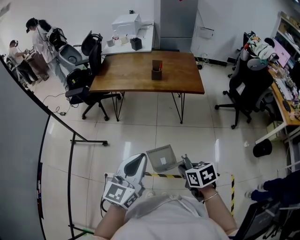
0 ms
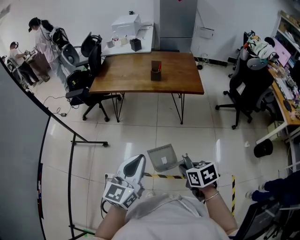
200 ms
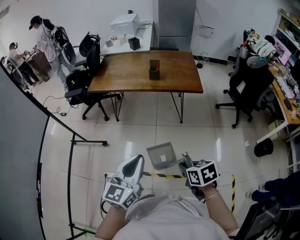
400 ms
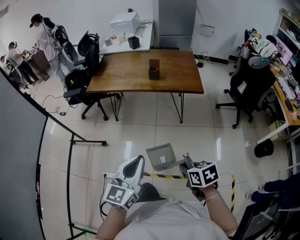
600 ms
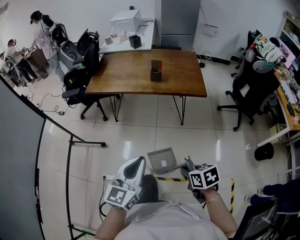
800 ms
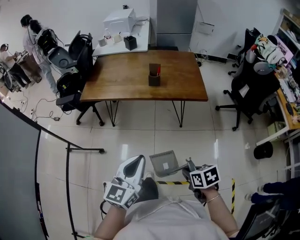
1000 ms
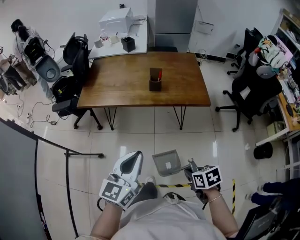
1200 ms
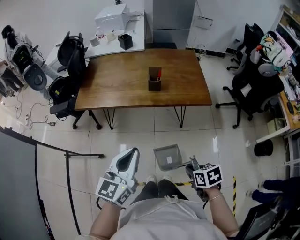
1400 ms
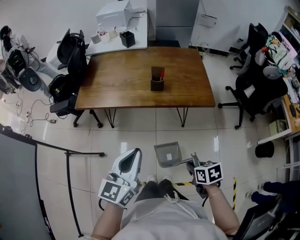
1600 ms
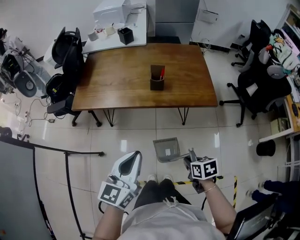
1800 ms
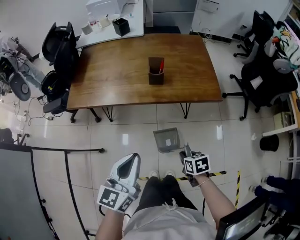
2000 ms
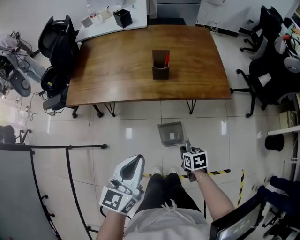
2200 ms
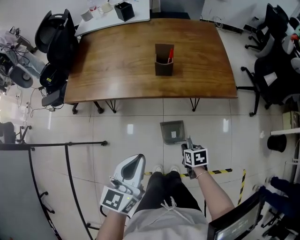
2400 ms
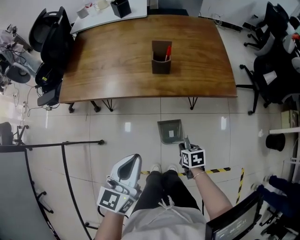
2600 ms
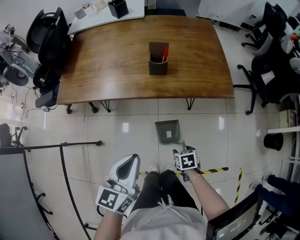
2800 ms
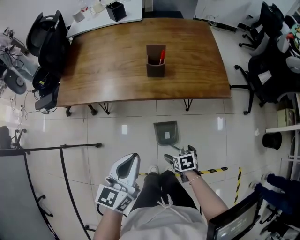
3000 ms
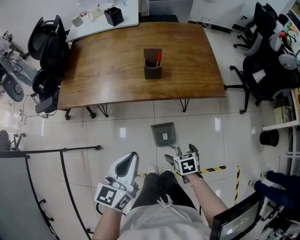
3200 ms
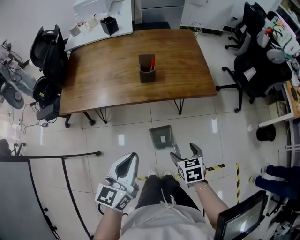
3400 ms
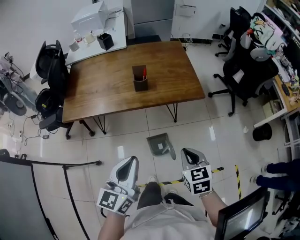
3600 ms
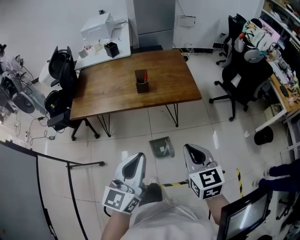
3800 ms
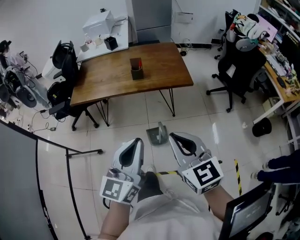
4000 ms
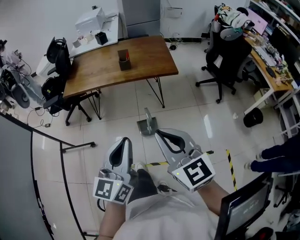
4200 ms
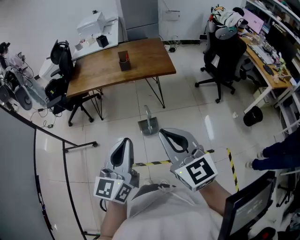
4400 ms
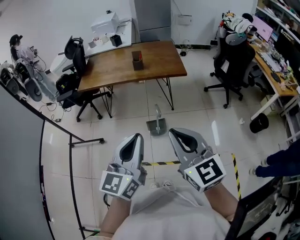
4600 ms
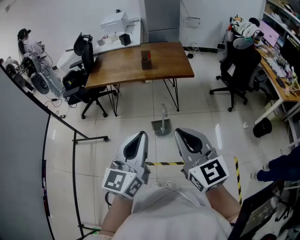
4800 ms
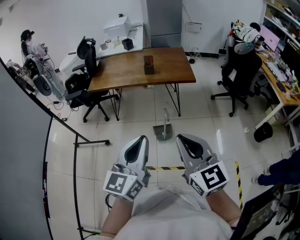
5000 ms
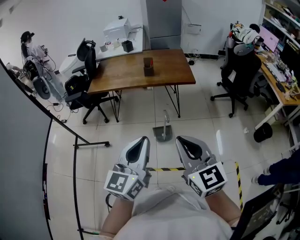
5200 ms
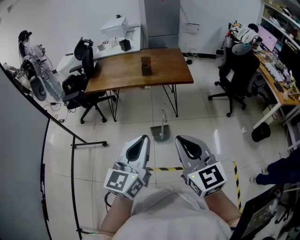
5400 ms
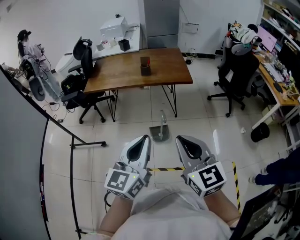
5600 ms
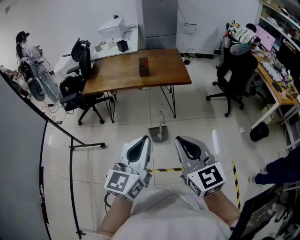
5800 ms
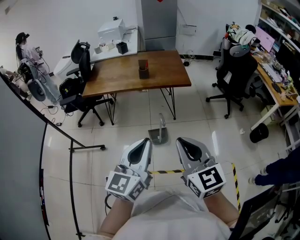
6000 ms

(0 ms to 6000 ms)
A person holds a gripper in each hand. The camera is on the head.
0 ms - 1600 ms: Both grippers move forward, roughly 25 cm.
1600 ms - 3000 ms: The right gripper travels downward and forward by roughly 25 cm, and opens. The left gripper goes some 15 cm downward and forward.
3000 ms - 4400 ms: The right gripper goes some 60 cm upward and backward, angles its fingers upward, by some 60 degrees, and closes its fingers. The left gripper heads backward and upward, covering roughly 40 cm, and changes its angle by roughly 20 degrees.
4400 ms - 6000 ms: There are only small adjustments of the grippers.

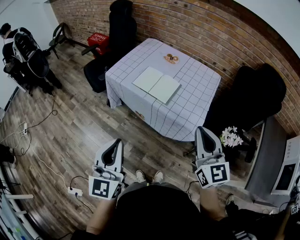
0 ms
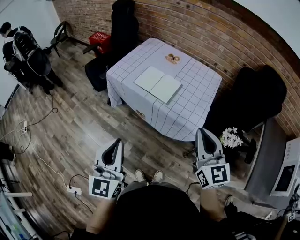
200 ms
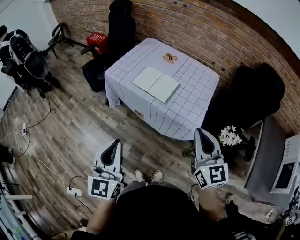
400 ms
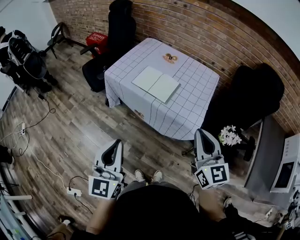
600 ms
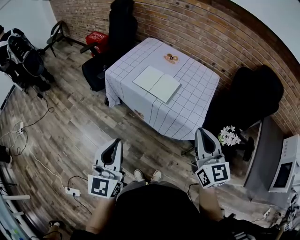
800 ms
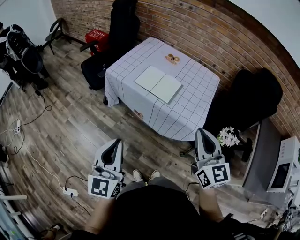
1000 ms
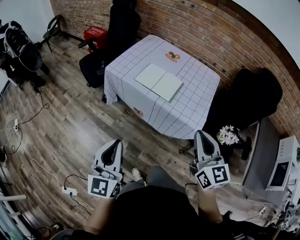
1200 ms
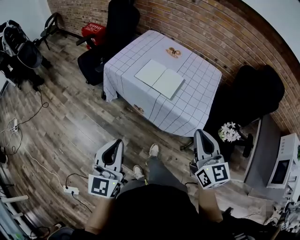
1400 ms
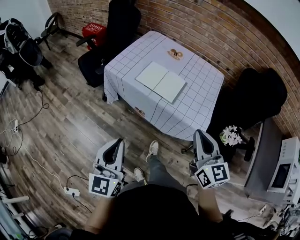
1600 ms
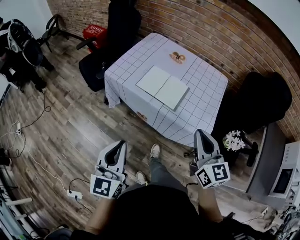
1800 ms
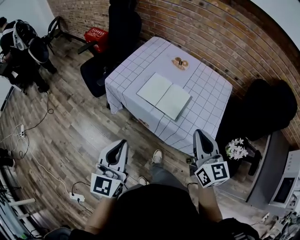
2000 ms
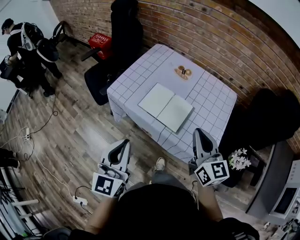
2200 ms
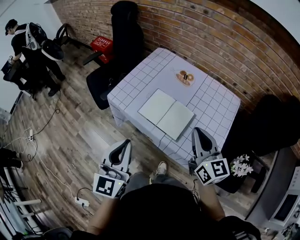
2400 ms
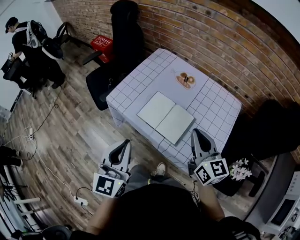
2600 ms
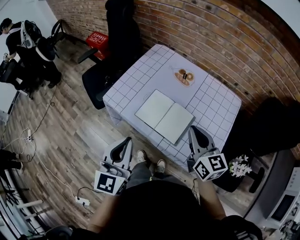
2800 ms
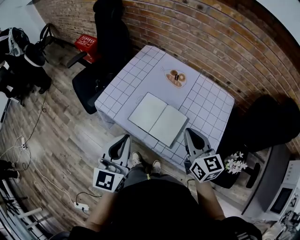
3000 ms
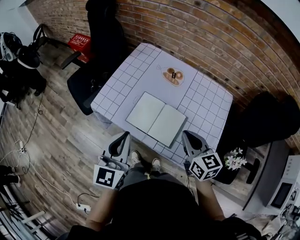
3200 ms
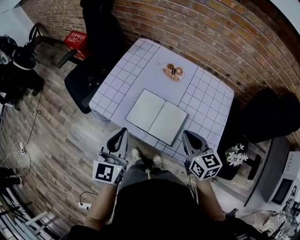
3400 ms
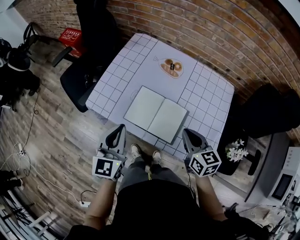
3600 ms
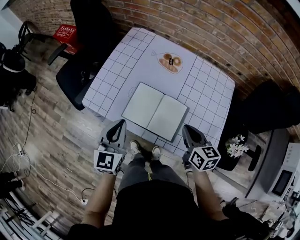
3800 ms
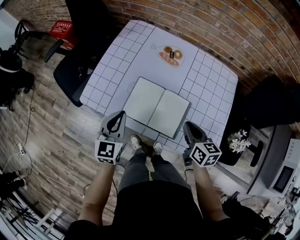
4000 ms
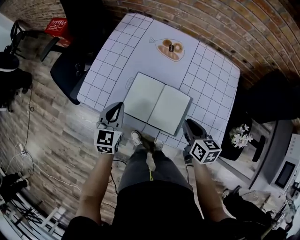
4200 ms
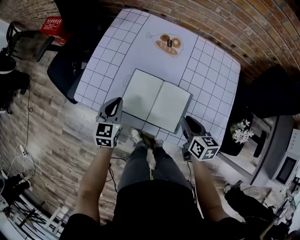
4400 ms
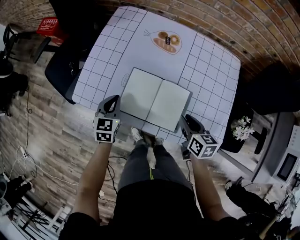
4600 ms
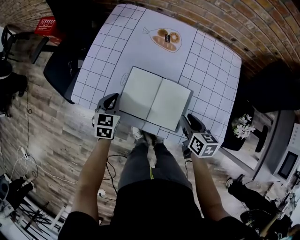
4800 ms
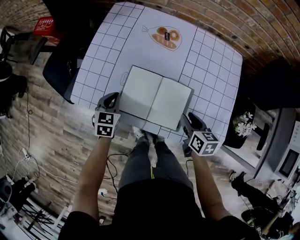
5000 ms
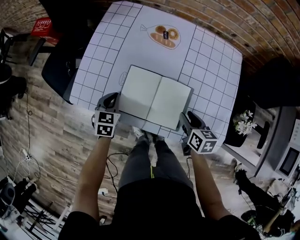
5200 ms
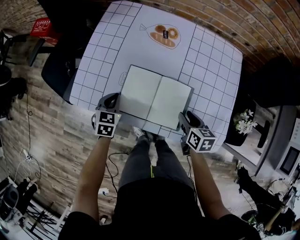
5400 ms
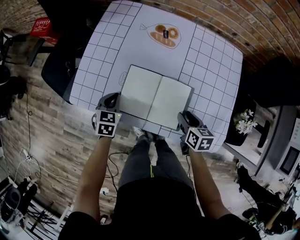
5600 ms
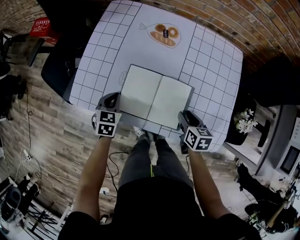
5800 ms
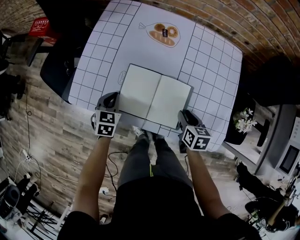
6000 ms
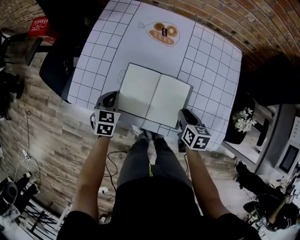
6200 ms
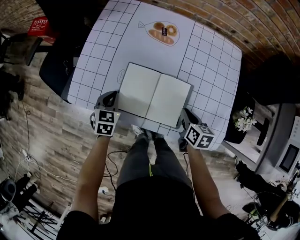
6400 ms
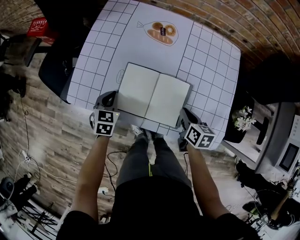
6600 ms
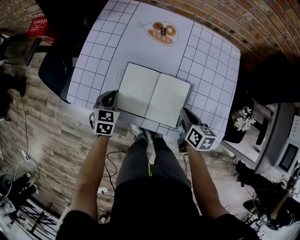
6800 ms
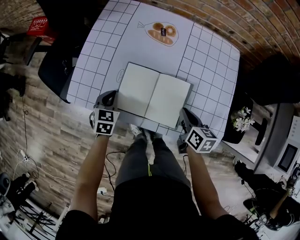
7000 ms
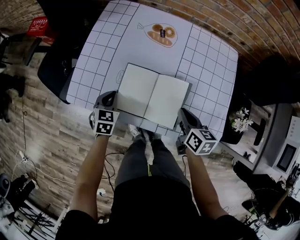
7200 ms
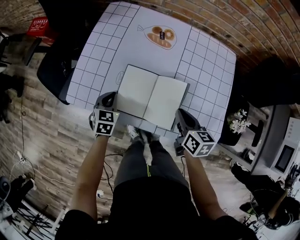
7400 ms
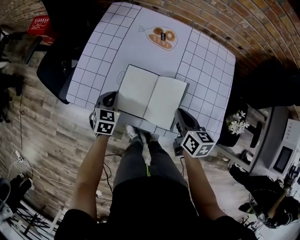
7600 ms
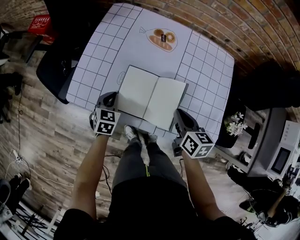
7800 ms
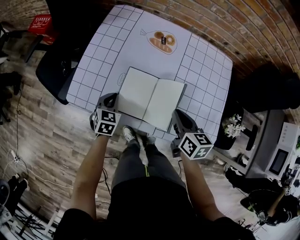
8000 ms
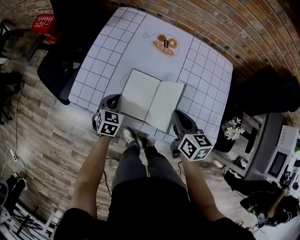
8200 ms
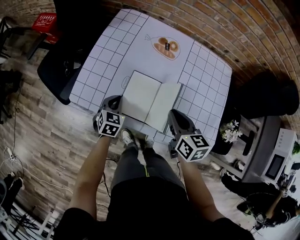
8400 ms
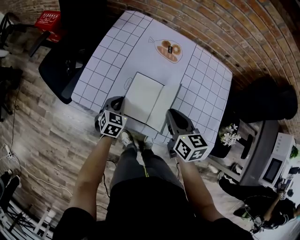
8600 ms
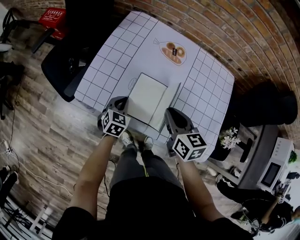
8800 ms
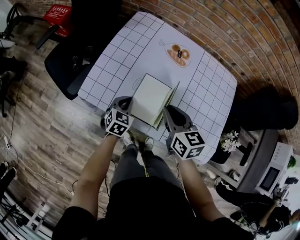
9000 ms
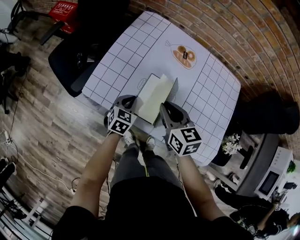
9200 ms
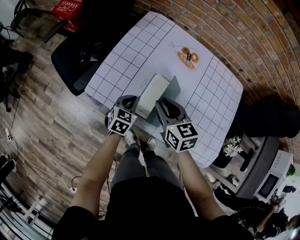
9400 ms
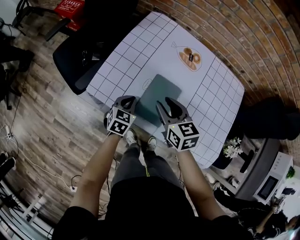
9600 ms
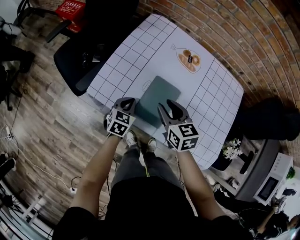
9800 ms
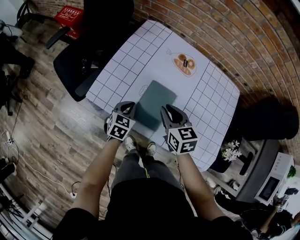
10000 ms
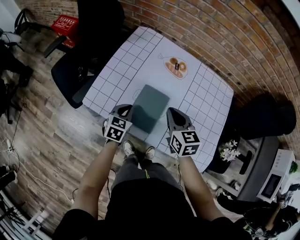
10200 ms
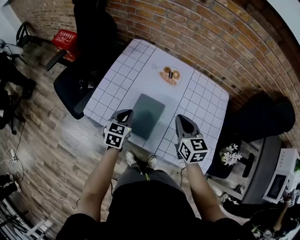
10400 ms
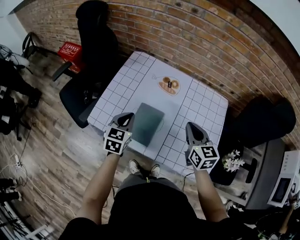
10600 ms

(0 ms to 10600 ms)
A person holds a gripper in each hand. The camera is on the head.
0 ms - 1600 ms: The right gripper moves to the left, about 5 cm; the left gripper travels to the left and downward by some 10 cm.
1600 ms - 3000 ms: Both grippers move forward, roughly 30 cm.
3000 ms - 4600 ms: The right gripper shifts some 20 cm downward, rotates about 40 degrees, and opens its fingers, while the left gripper heads downward and forward, covering approximately 35 cm, and changes its angle by approximately 30 degrees.
4600 ms - 6000 ms: The right gripper heads downward, covering some 5 cm.
6000 ms - 7600 ms: The right gripper shifts about 10 cm upward, and closes.
7600 ms - 9000 ms: The right gripper goes some 15 cm to the left and upward, and changes its angle by some 20 degrees.
9000 ms - 10600 ms: The left gripper travels upward by roughly 15 cm; the right gripper goes approximately 15 cm to the right and upward, and opens, then closes once more.

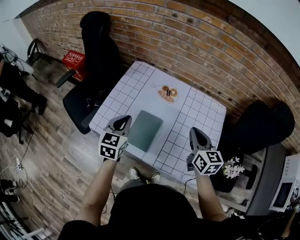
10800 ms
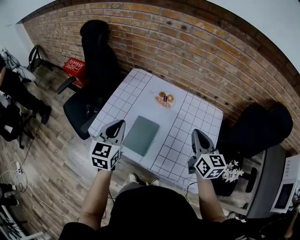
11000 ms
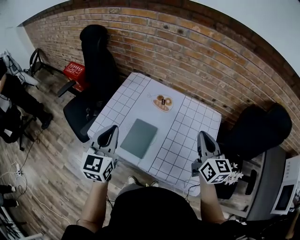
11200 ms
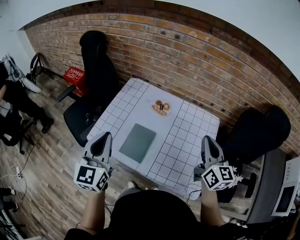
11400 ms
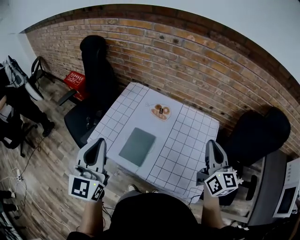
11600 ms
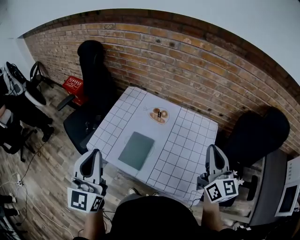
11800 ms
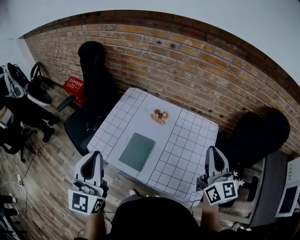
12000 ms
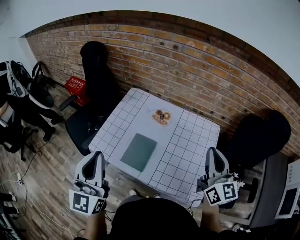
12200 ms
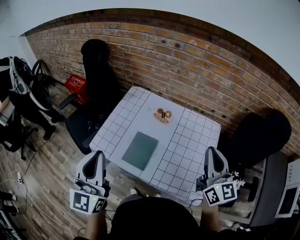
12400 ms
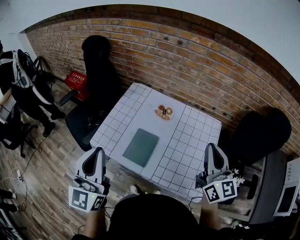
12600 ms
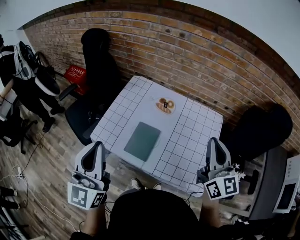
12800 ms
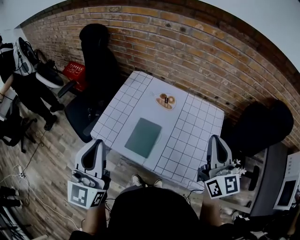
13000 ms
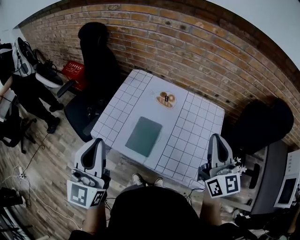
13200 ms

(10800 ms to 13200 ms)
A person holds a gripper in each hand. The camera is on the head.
10800 ms - 12000 ms: The left gripper heads upward and backward, covering some 25 cm, and tilts its fingers approximately 30 degrees upward; the right gripper goes some 20 cm upward and to the right, and rotates about 20 degrees.
12000 ms - 13200 ms: The right gripper heads to the left, covering some 5 cm.

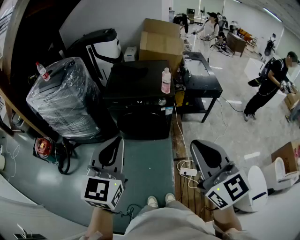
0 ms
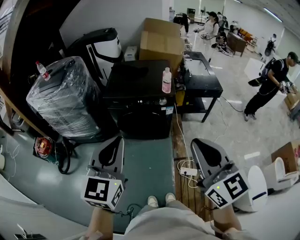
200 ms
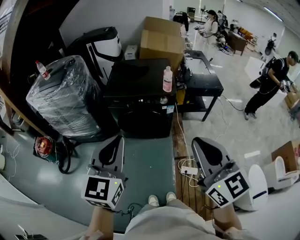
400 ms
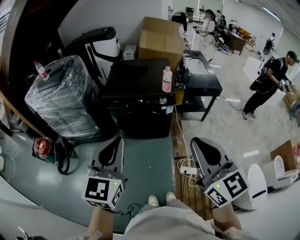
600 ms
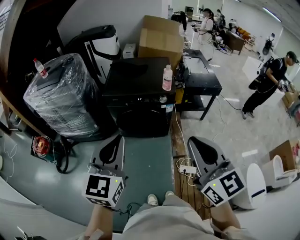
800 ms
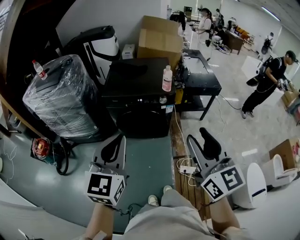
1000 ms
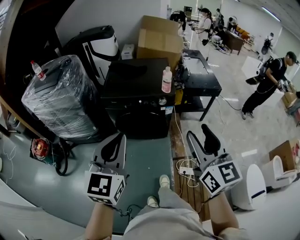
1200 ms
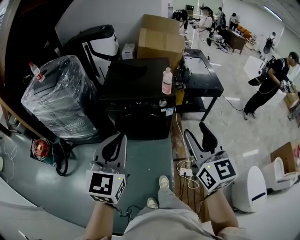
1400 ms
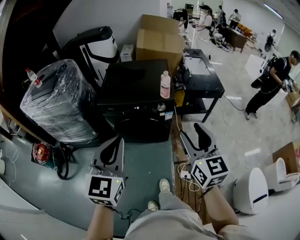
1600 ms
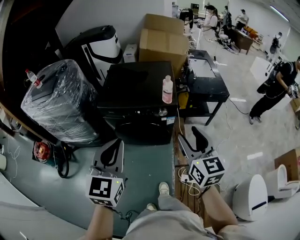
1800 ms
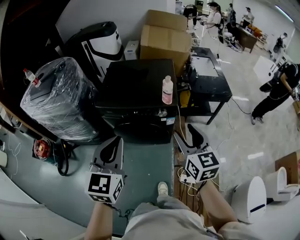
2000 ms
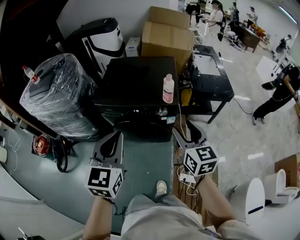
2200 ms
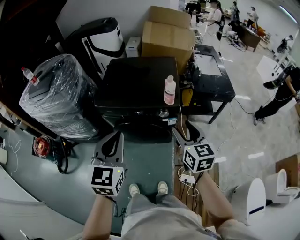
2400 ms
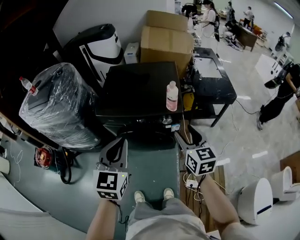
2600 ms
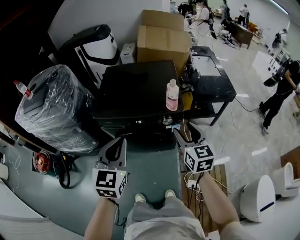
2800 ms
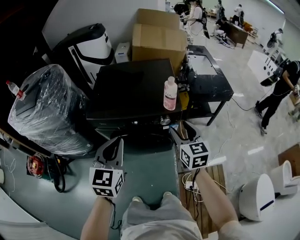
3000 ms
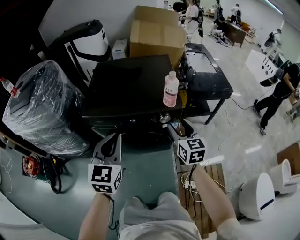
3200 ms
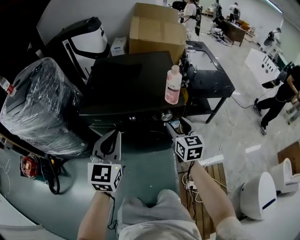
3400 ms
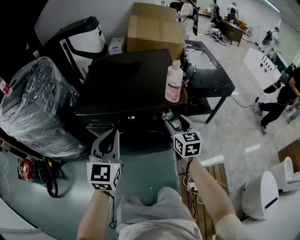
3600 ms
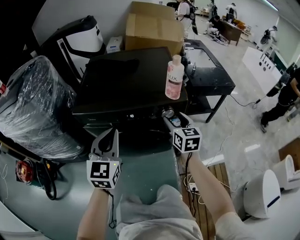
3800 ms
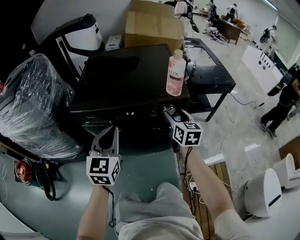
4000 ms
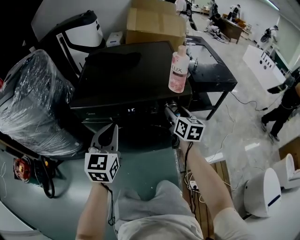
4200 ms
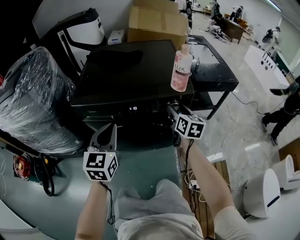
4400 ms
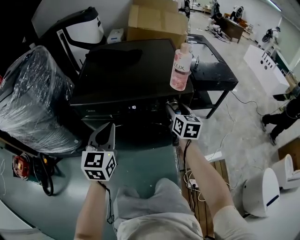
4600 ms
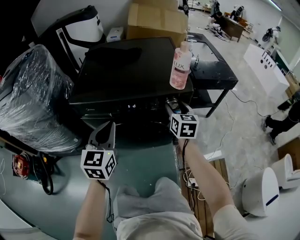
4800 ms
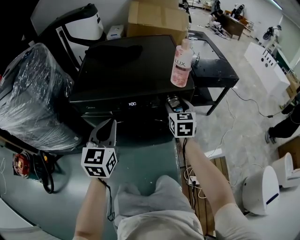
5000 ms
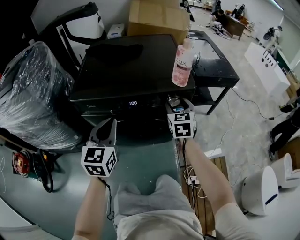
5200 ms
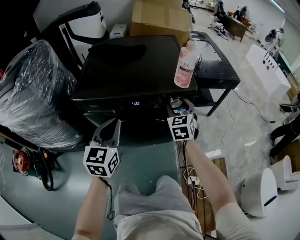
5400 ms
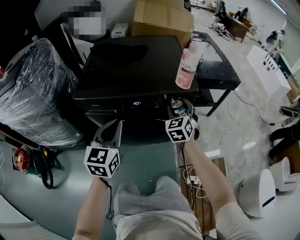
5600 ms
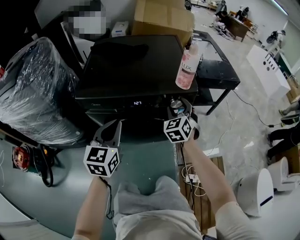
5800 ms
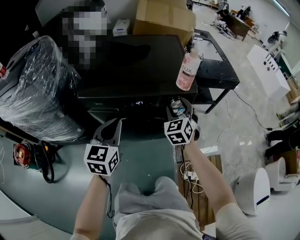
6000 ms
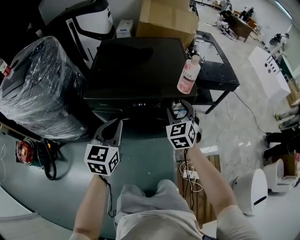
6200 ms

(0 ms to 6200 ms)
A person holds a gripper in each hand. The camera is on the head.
0 ms - 1600 ms: The right gripper is displaced forward and downward by some 20 cm, and opens up. The left gripper goes about 10 cm forward.
1600 ms - 3200 ms: Both grippers travel together forward and downward, some 35 cm.
3200 ms - 4600 ms: The two grippers go about 15 cm downward and forward.
4600 ms - 6200 ms: The left gripper goes some 5 cm upward. Meanwhile the right gripper goes some 10 cm upward, backward and to the left, and rolls counterclockwise, seen from behind, by about 40 degrees.
